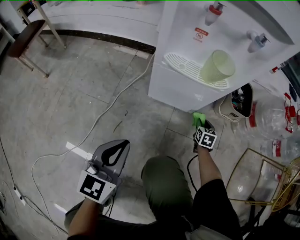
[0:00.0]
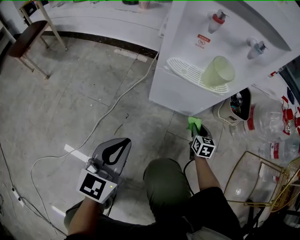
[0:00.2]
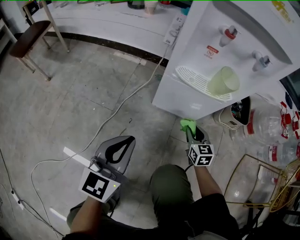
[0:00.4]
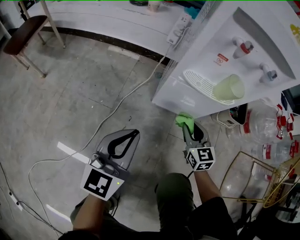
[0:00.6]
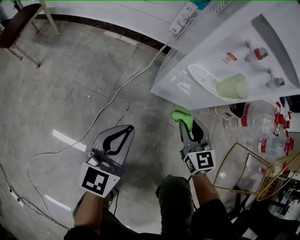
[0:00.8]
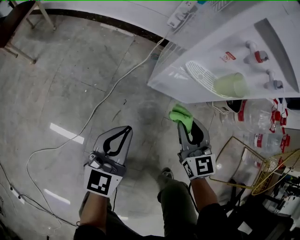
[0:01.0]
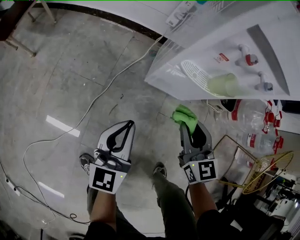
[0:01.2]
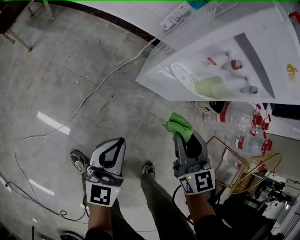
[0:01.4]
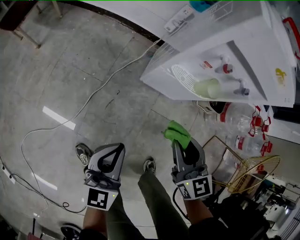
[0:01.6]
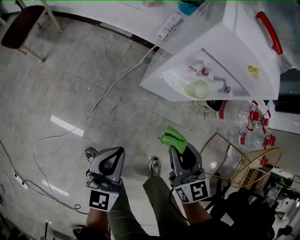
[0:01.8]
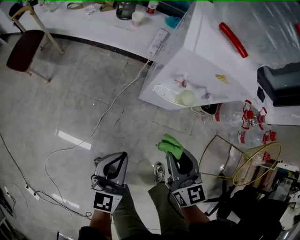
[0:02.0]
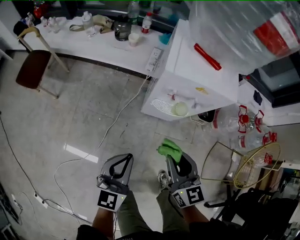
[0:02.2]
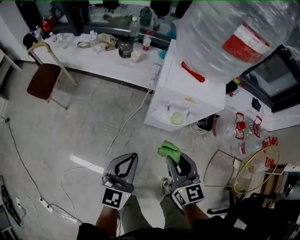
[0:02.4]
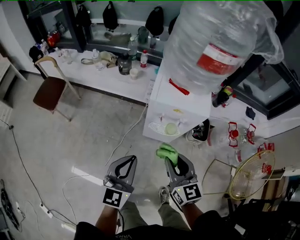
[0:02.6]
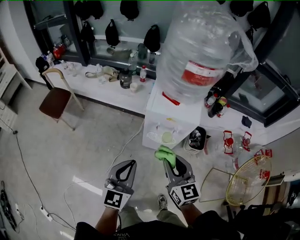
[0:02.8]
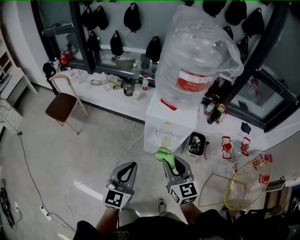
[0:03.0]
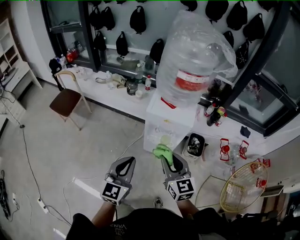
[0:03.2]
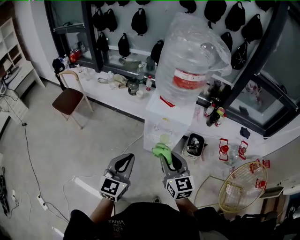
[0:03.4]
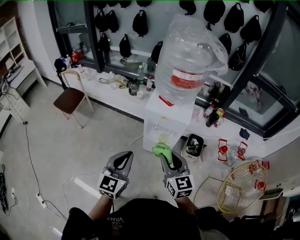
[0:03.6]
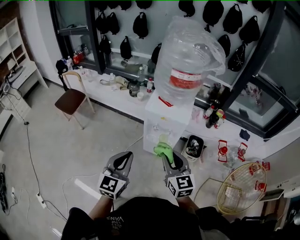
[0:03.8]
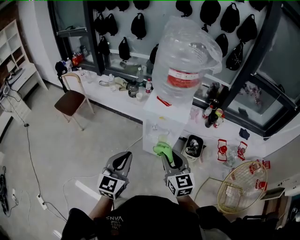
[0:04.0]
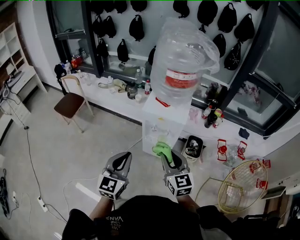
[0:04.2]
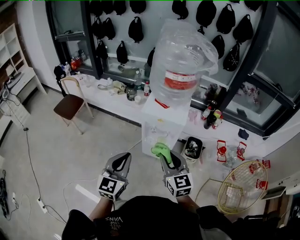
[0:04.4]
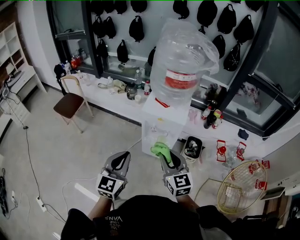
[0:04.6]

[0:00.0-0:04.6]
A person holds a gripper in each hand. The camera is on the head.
0:00.0 to 0:01.6: The right gripper shifts roughly 50 cm upward and to the left, and swivels approximately 40 degrees, while the left gripper travels upward by approximately 15 cm.
0:01.6 to 0:03.0: The two grippers go about 35 cm upward.
0:03.0 to 0:04.6: The right gripper moves about 5 cm. Meanwhile the left gripper shifts by some 5 cm.

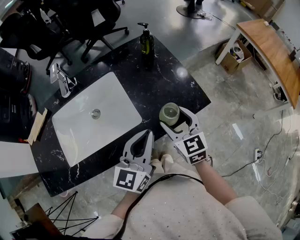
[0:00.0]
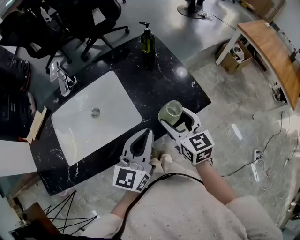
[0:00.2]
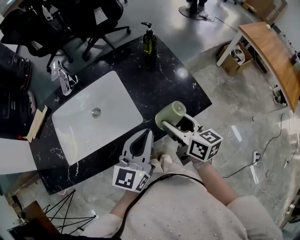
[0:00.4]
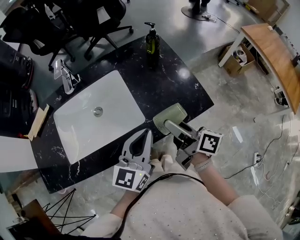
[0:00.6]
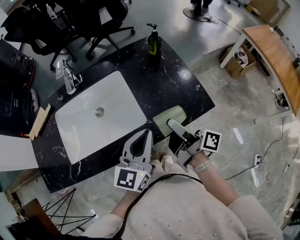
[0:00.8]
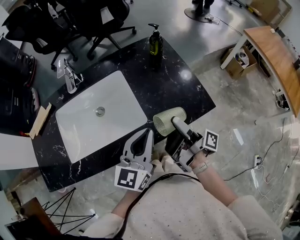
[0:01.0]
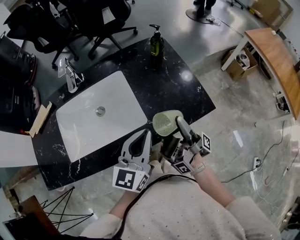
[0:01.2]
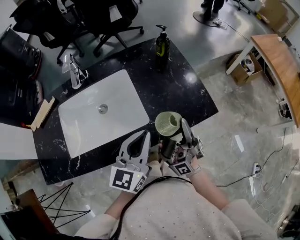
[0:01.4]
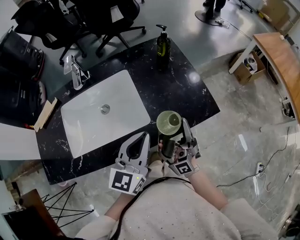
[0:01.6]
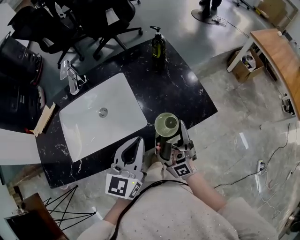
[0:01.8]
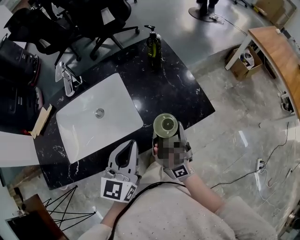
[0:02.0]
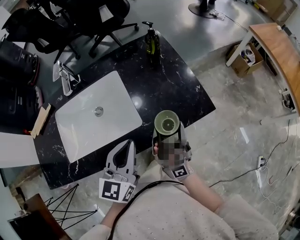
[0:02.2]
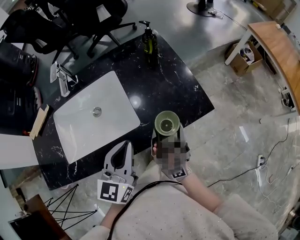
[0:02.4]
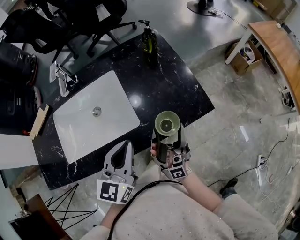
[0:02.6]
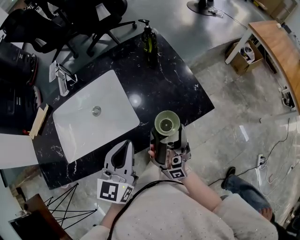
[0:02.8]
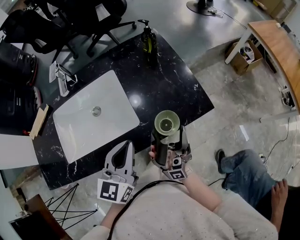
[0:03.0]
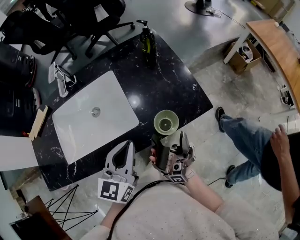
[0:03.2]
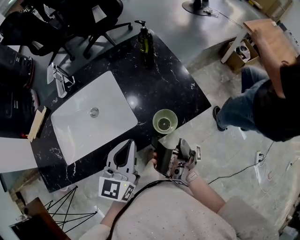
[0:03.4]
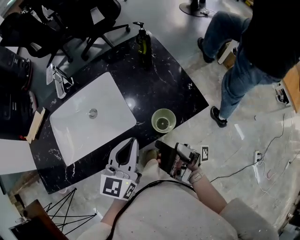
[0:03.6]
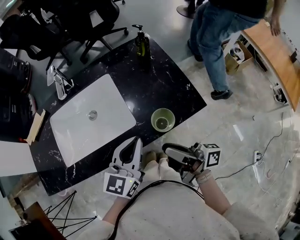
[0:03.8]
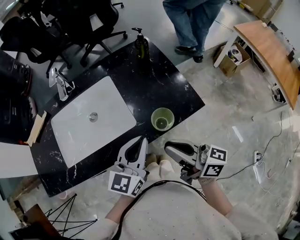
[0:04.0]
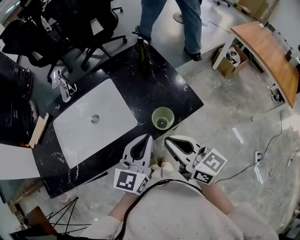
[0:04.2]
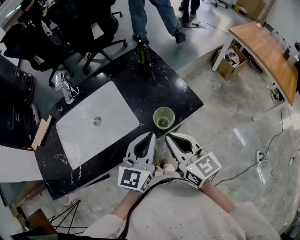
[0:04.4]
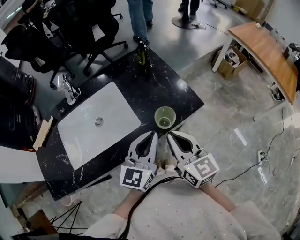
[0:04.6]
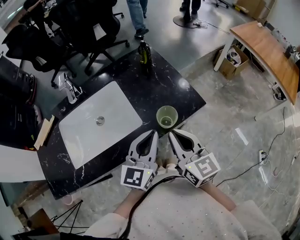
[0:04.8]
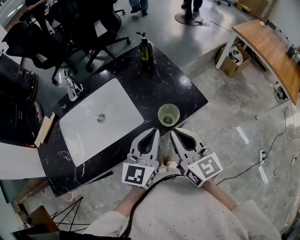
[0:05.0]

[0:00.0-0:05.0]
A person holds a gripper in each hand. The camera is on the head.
0:03.4 to 0:05.0: The left gripper ends up some 5 cm from where it was.

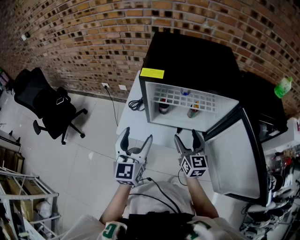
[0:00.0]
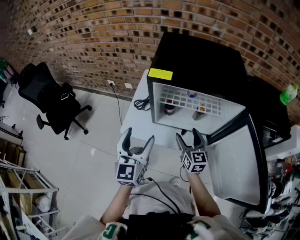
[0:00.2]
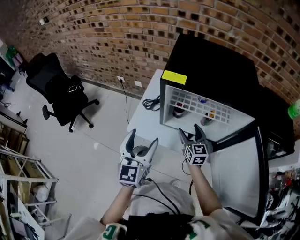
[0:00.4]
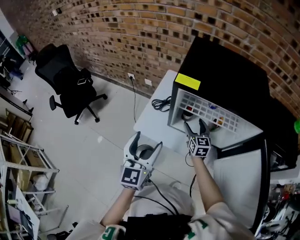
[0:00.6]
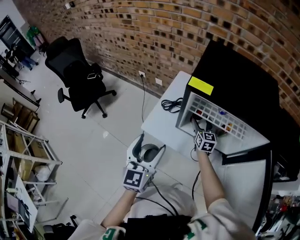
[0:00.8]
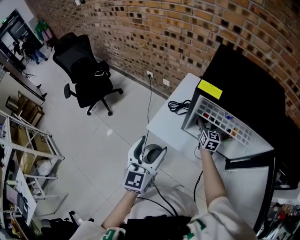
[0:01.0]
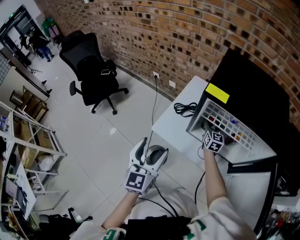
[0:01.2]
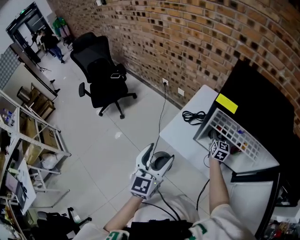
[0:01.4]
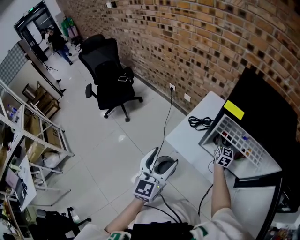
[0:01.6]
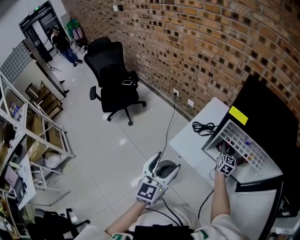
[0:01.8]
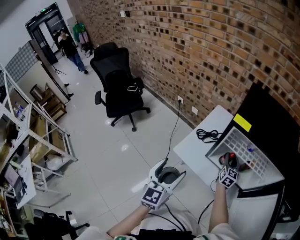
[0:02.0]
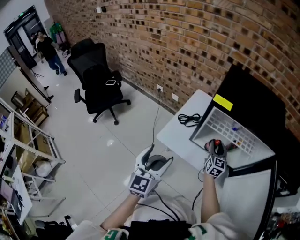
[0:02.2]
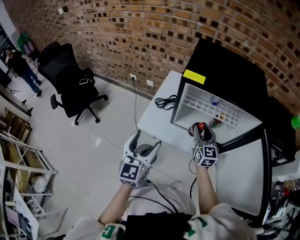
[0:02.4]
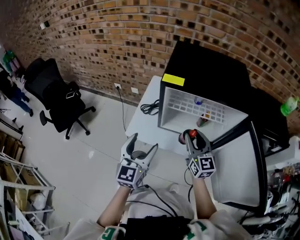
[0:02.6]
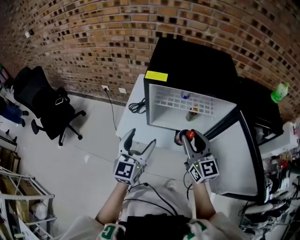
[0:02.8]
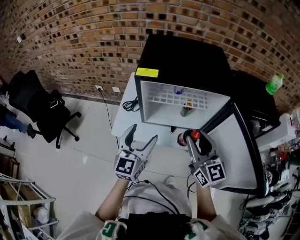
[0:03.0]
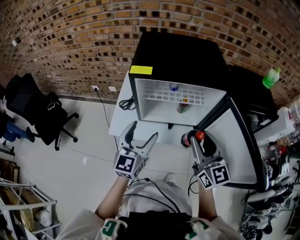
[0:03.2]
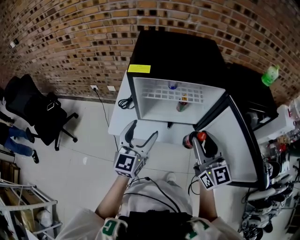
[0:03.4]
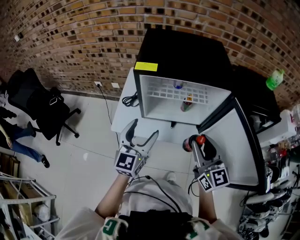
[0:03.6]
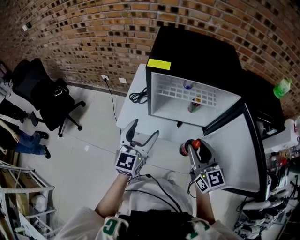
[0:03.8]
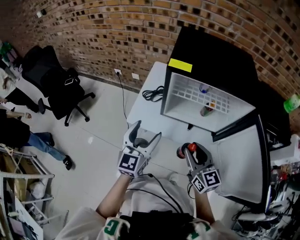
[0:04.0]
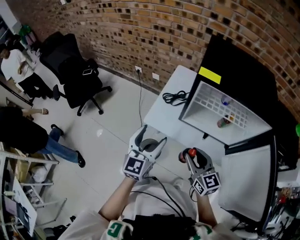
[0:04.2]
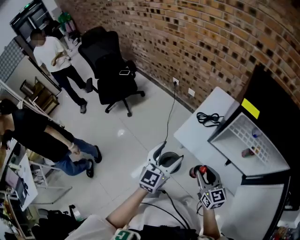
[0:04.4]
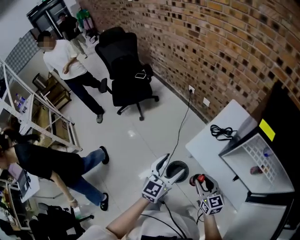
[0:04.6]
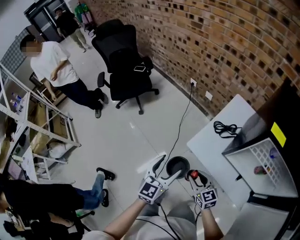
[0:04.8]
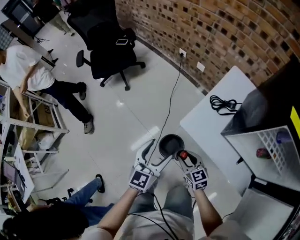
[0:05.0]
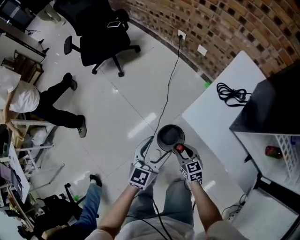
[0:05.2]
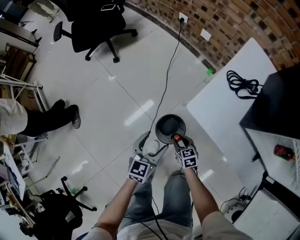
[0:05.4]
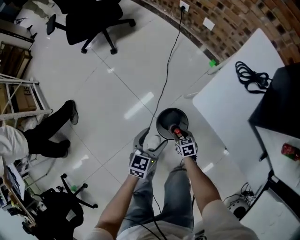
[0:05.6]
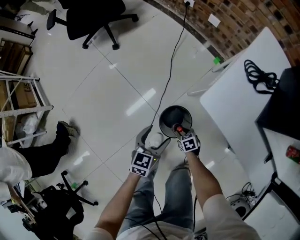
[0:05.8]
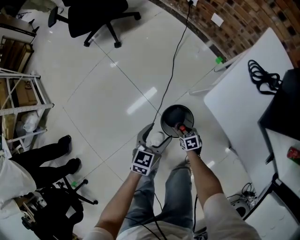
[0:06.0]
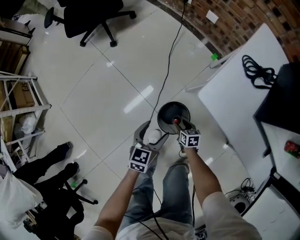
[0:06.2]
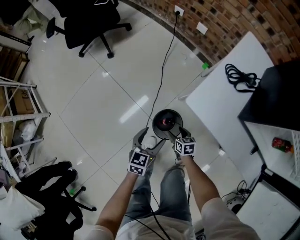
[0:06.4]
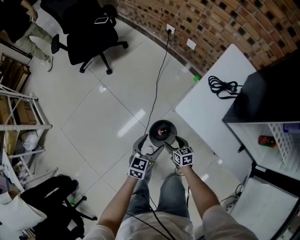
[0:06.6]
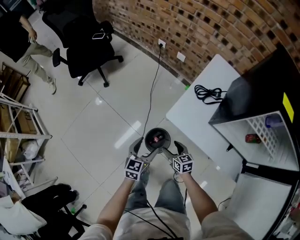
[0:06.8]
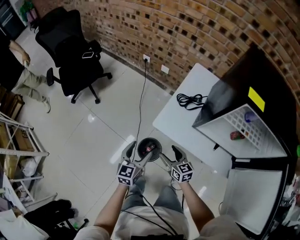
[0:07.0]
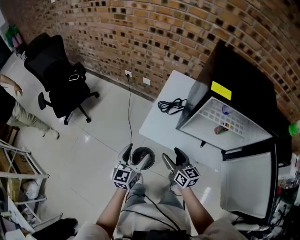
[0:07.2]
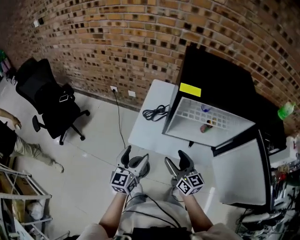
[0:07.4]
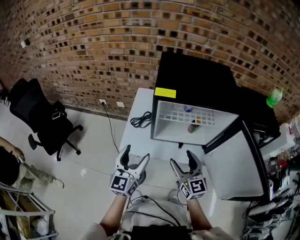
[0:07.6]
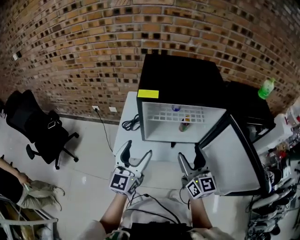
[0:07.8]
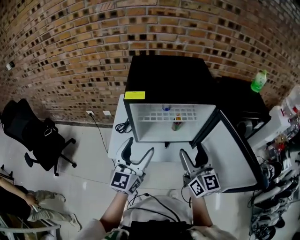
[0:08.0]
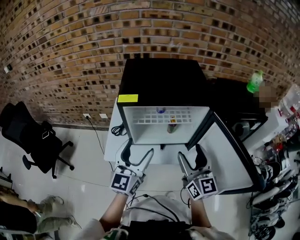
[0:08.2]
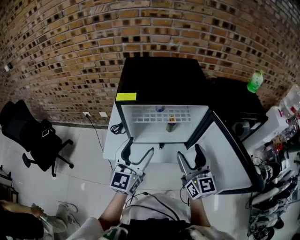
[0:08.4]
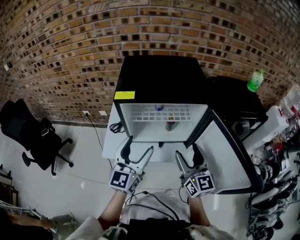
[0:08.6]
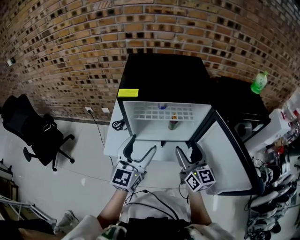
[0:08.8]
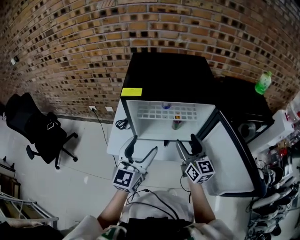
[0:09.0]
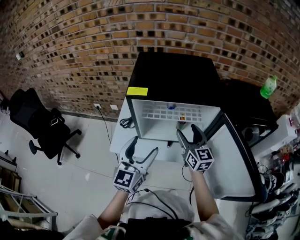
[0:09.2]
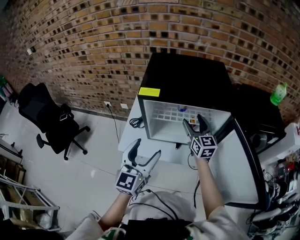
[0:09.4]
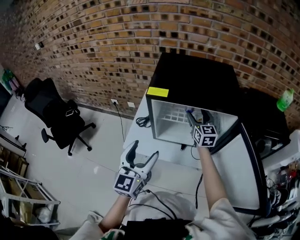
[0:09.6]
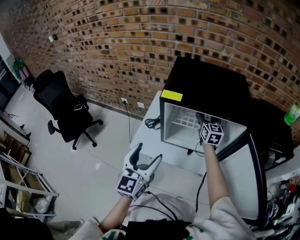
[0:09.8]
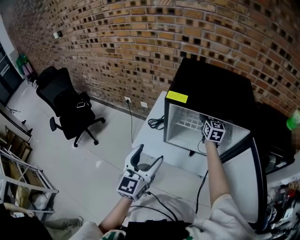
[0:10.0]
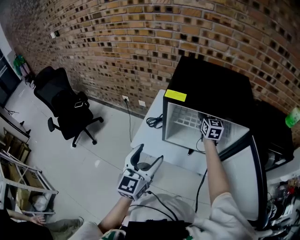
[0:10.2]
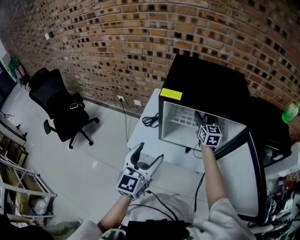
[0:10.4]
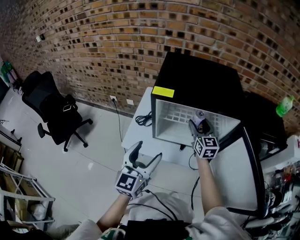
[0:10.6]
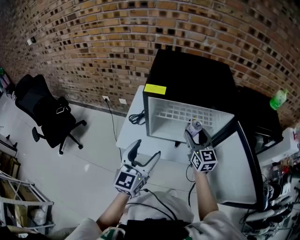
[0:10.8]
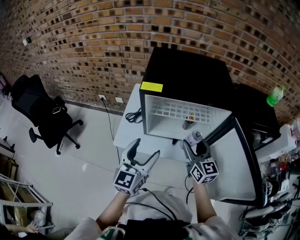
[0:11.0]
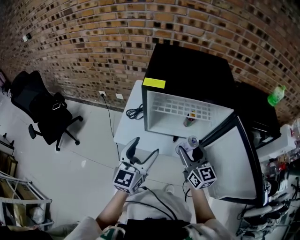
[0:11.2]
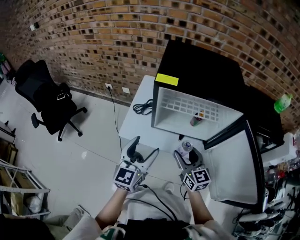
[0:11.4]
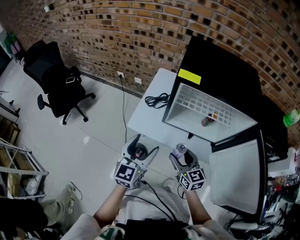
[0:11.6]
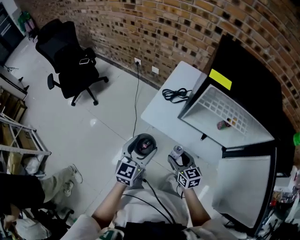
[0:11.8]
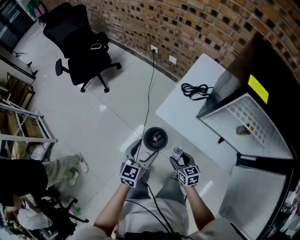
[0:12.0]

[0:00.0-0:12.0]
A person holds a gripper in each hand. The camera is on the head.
0:00.0 to 0:01.6: The left gripper is displaced to the left by approximately 10 cm. Meanwhile the right gripper is displaced forward and downward by approximately 25 cm, and closes its fingers.
0:01.6 to 0:03.0: The left gripper travels to the right by roughly 15 cm, and changes its angle by approximately 30 degrees. Meanwhile the right gripper shifts about 40 cm backward and upward.
0:03.0 to 0:04.4: The right gripper heads downward, covering approximately 20 cm, and swivels roughly 40 degrees, while the left gripper changes place by some 15 cm, and swivels approximately 20 degrees.
0:04.4 to 0:06.0: Both grippers move downward, about 50 cm. The left gripper rotates some 30 degrees. The right gripper points its fingers some 50 degrees further downward.
0:06.0 to 0:07.6: Both grippers move upward, some 60 cm. The left gripper angles its fingers upward, by about 40 degrees, while the right gripper angles its fingers upward, by about 60 degrees, and opens up.
0:07.6 to 0:09.0: The left gripper travels to the right and upward by roughly 15 cm. Meanwhile the right gripper goes roughly 15 cm to the right and forward.
0:09.0 to 0:10.4: The left gripper heads to the left, covering roughly 5 cm; the right gripper heads forward, covering approximately 20 cm.
0:10.4 to 0:12.0: The left gripper travels downward by roughly 25 cm, and turns by some 30 degrees. Meanwhile the right gripper ends up some 50 cm from where it was, and turns by approximately 50 degrees.

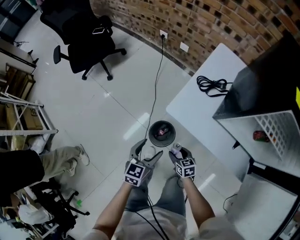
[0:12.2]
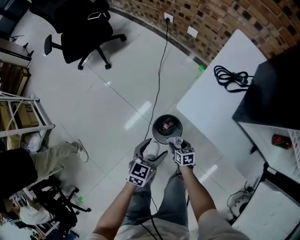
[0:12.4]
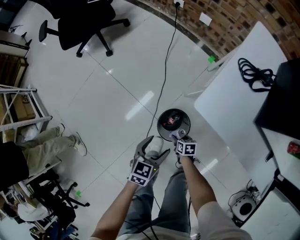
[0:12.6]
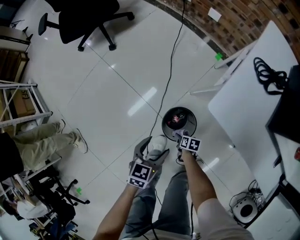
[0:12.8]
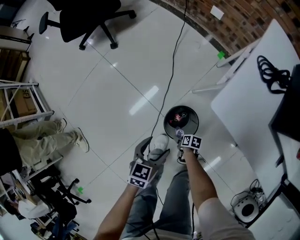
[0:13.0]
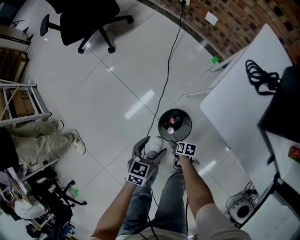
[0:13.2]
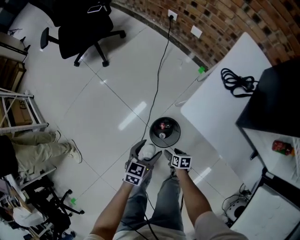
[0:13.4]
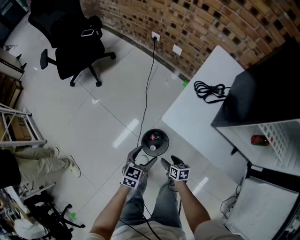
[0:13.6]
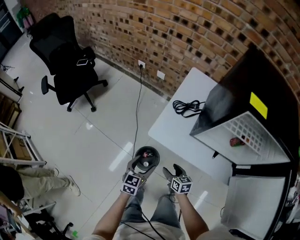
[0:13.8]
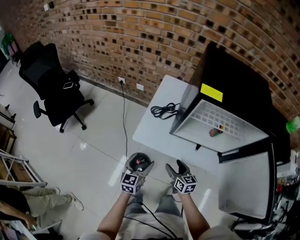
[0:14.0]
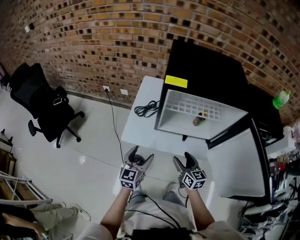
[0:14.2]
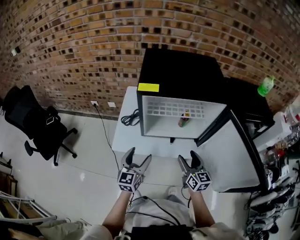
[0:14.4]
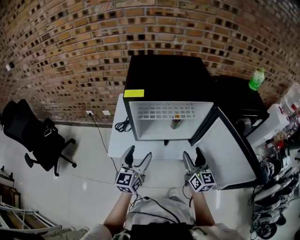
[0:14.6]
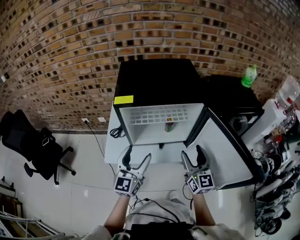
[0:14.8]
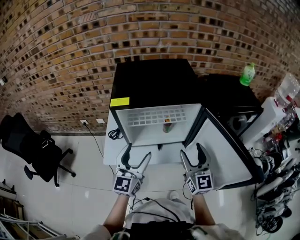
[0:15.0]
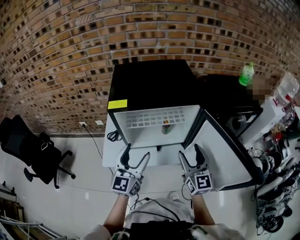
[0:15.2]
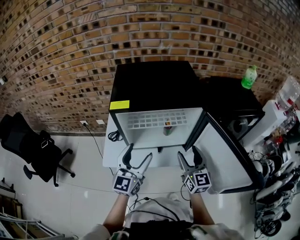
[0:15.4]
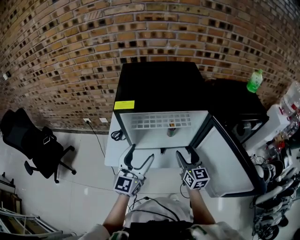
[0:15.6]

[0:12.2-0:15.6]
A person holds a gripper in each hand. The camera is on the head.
0:12.2 to 0:13.8: The right gripper travels downward and back again, approximately 35 cm each way, and changes its angle by roughly 20 degrees. The left gripper travels downward and back again, some 25 cm each way.
0:13.8 to 0:15.6: Both grippers move upward, approximately 35 cm. The right gripper angles its fingers upward, by approximately 30 degrees. Meanwhile the left gripper tilts its fingers roughly 30 degrees upward.
